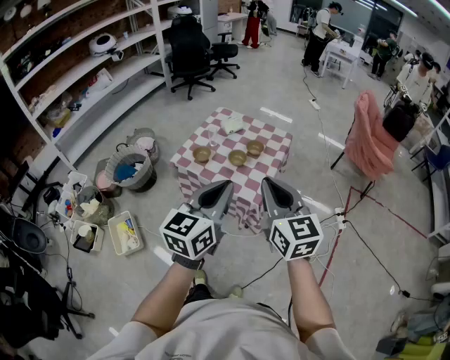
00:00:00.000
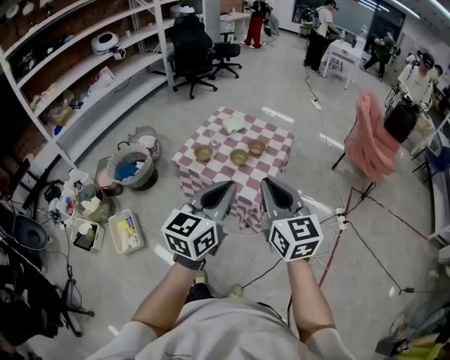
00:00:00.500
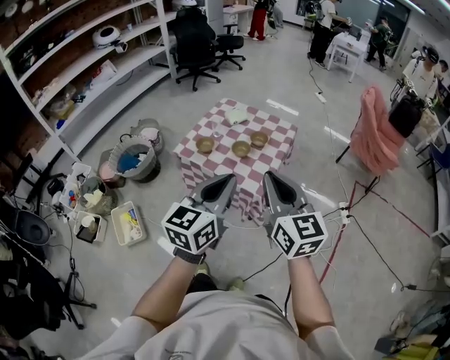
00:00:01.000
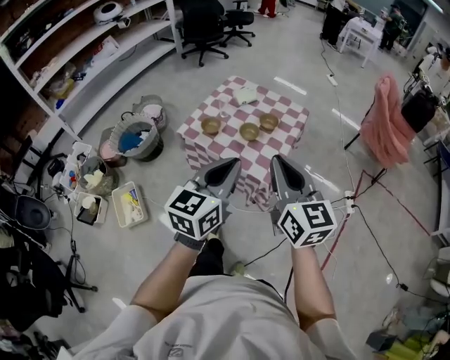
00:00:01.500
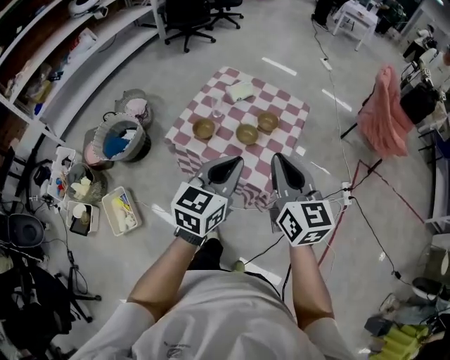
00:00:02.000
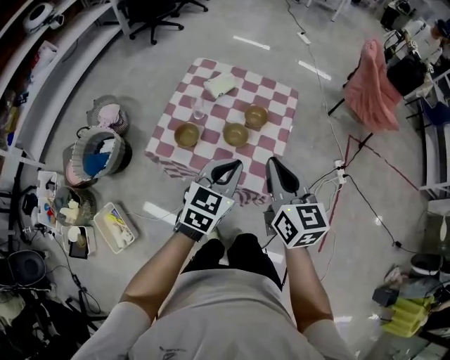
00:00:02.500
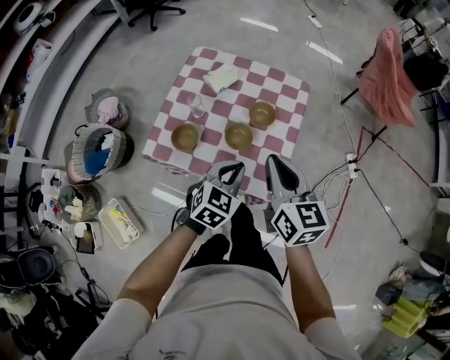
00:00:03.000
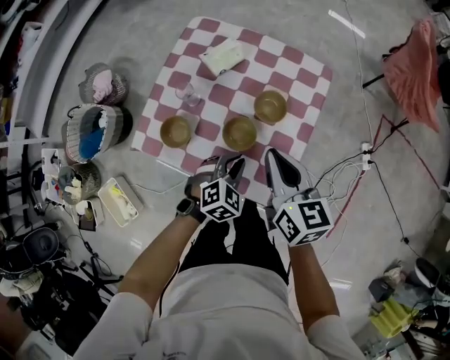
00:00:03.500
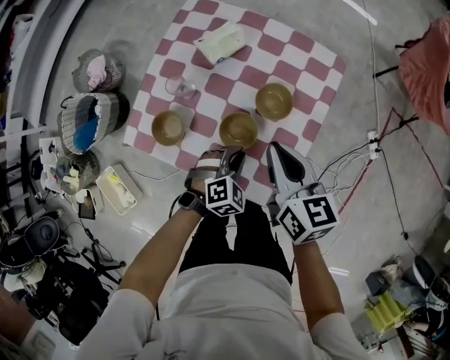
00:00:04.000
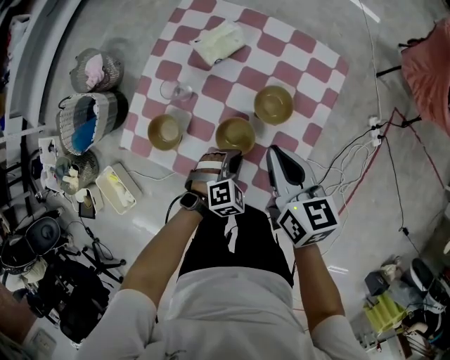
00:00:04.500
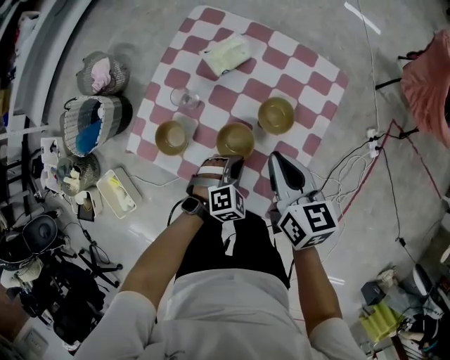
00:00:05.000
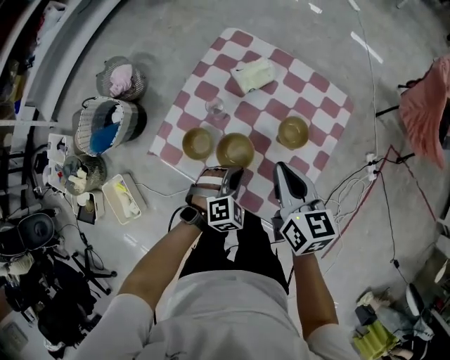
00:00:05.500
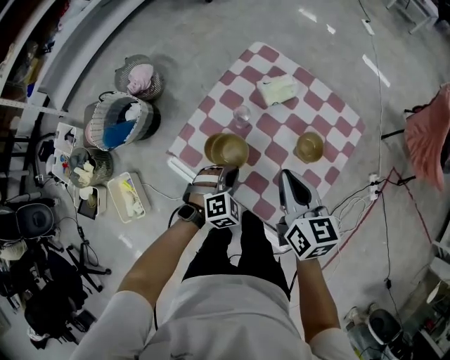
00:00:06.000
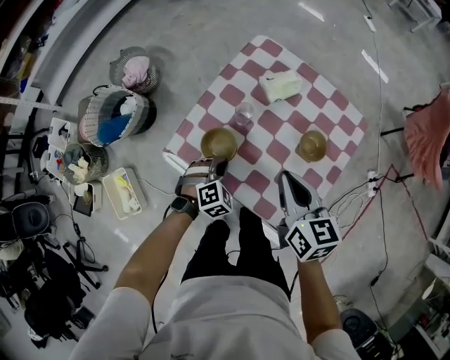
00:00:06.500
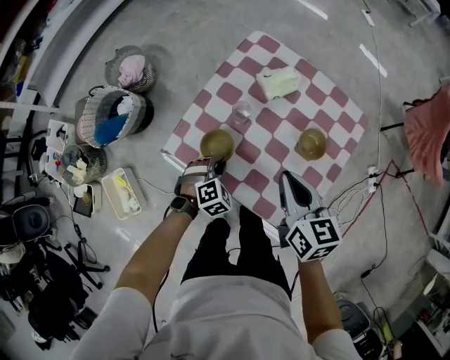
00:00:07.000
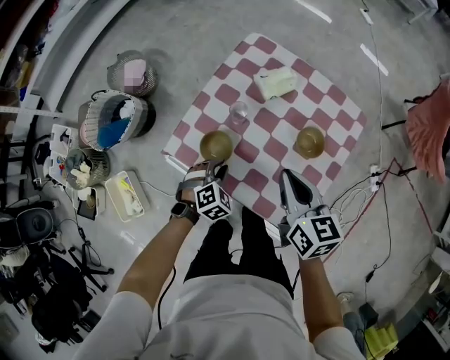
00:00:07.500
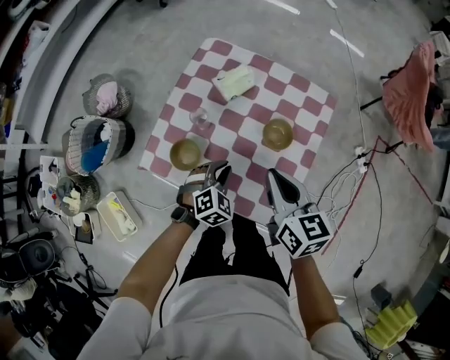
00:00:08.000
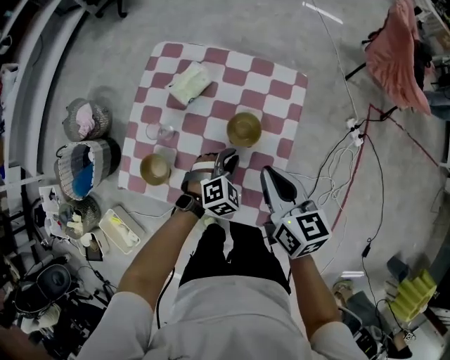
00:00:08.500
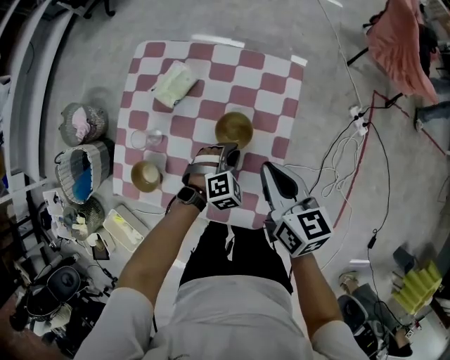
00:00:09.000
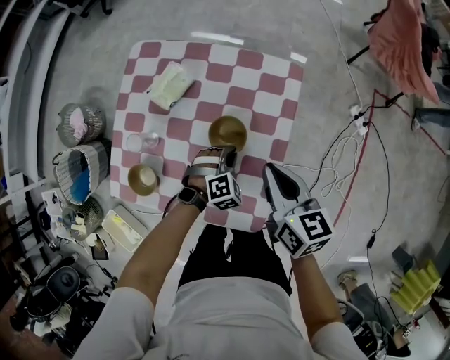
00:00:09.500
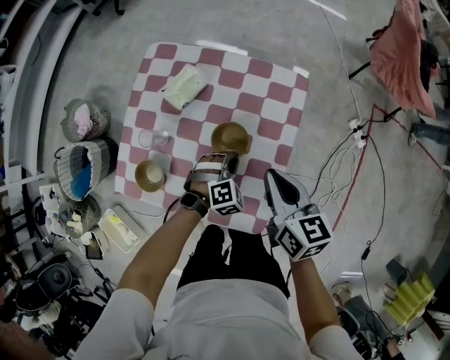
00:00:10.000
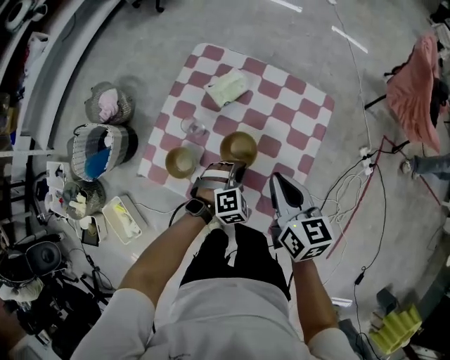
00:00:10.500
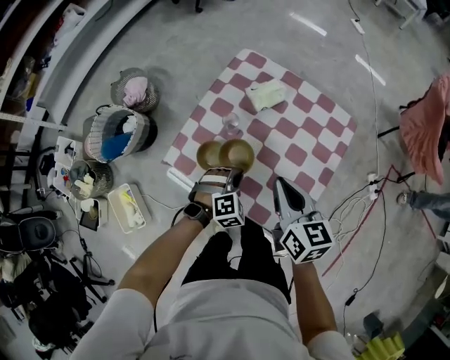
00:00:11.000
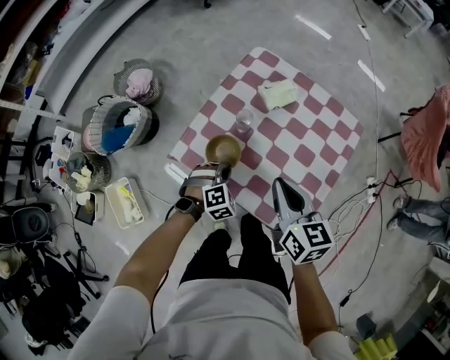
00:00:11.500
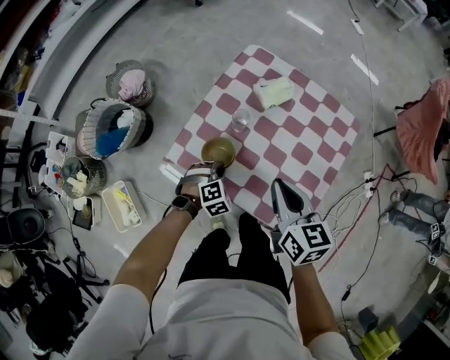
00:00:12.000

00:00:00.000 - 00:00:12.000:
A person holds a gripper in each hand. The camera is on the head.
00:00:00.000 - 00:00:02.000: Both grippers move forward and downward, about 20 cm.
00:00:02.000 - 00:00:04.000: The left gripper shifts approximately 50 cm downward and forward, and angles its fingers downward, by roughly 50 degrees. The right gripper heads forward and downward, covering approximately 40 cm, and rotates some 30 degrees.
00:00:04.000 - 00:00:06.000: The right gripper travels to the left and upward by approximately 10 cm, while the left gripper heads to the left, covering about 15 cm.
00:00:06.000 - 00:00:08.000: Both grippers travel together to the right, roughly 5 cm.
00:00:08.000 - 00:00:10.000: The left gripper is displaced to the right, forward and downward by approximately 20 cm, and changes its angle by about 20 degrees. The right gripper shifts some 15 cm to the right and forward.
00:00:10.000 - 00:00:12.000: The two grippers go about 25 cm to the left.

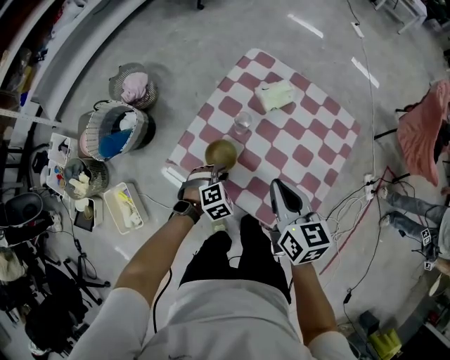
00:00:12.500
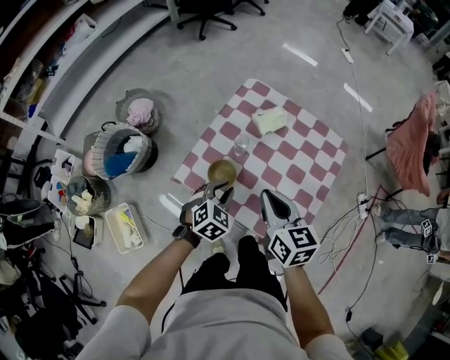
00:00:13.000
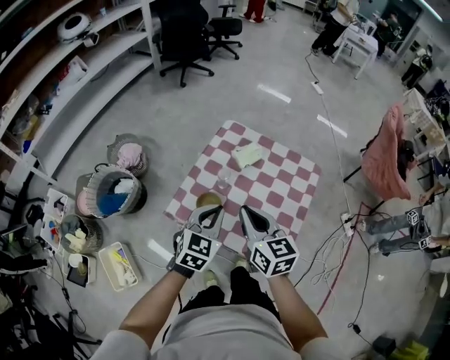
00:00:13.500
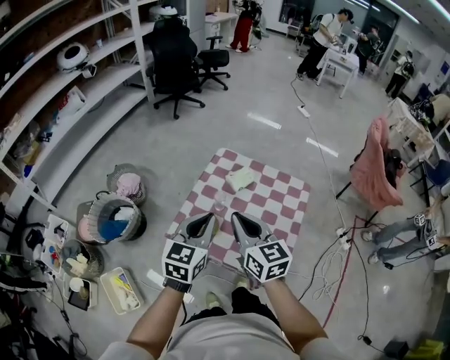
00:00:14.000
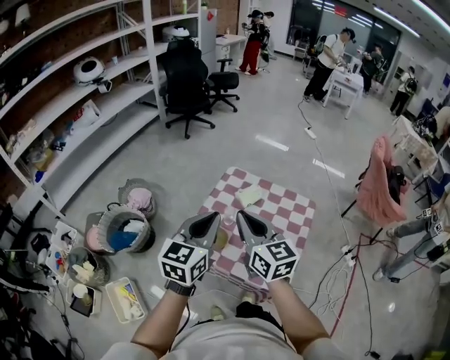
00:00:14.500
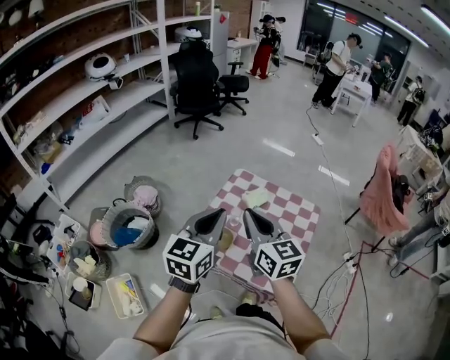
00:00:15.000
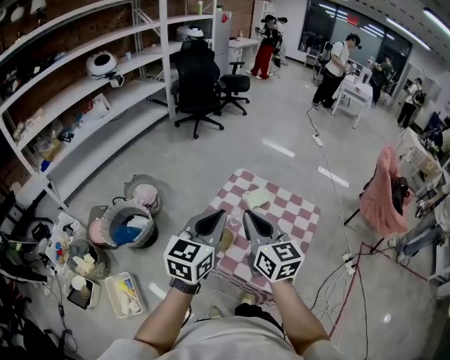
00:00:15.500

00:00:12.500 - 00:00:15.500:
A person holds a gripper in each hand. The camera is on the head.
00:00:12.500 - 00:00:14.000: The right gripper is displaced upward and to the left by approximately 20 cm. Meanwhile the left gripper goes roughly 40 cm upward, and points its fingers some 50 degrees further upward.
00:00:14.000 - 00:00:15.500: The two grippers go approximately 10 cm upward.

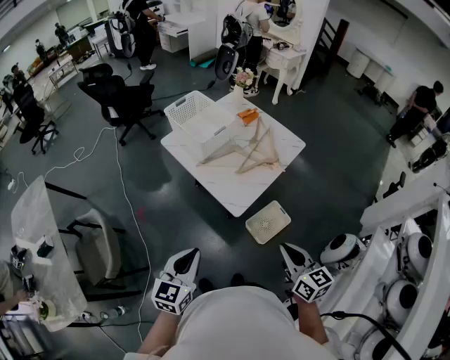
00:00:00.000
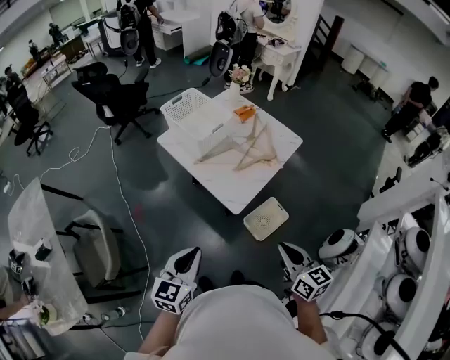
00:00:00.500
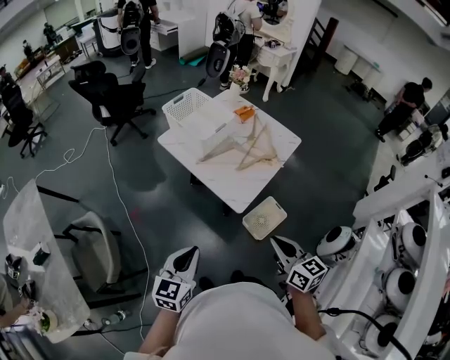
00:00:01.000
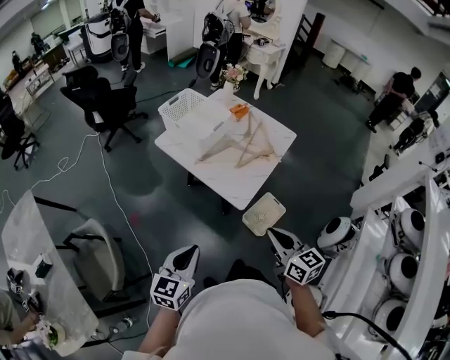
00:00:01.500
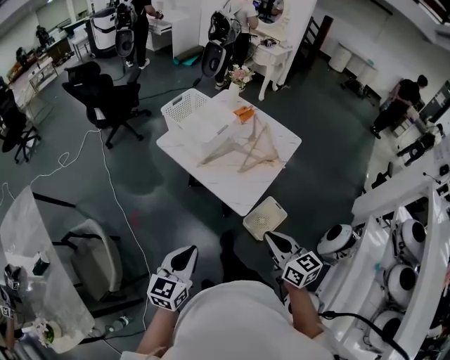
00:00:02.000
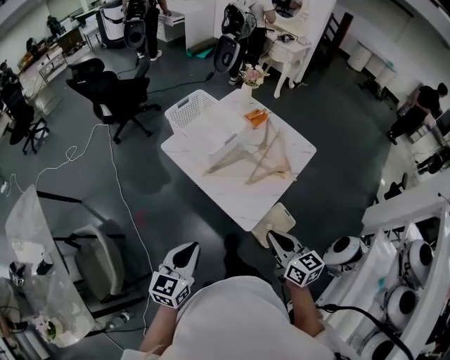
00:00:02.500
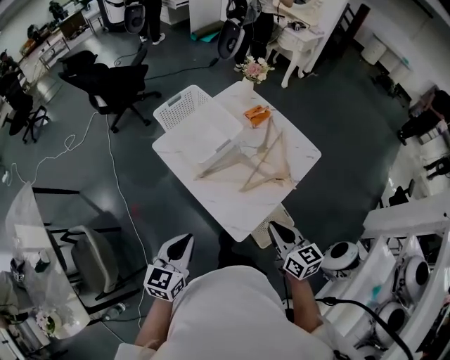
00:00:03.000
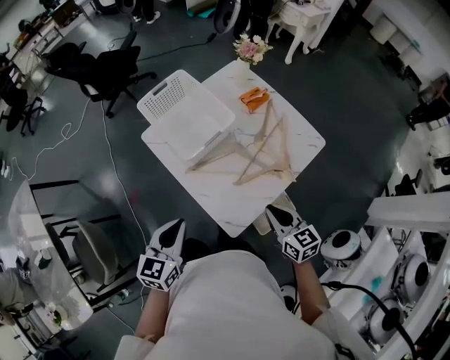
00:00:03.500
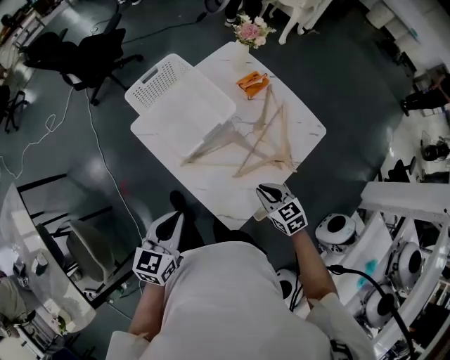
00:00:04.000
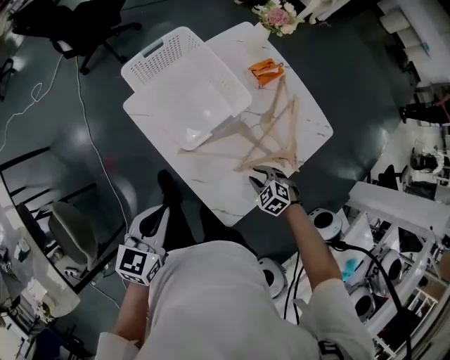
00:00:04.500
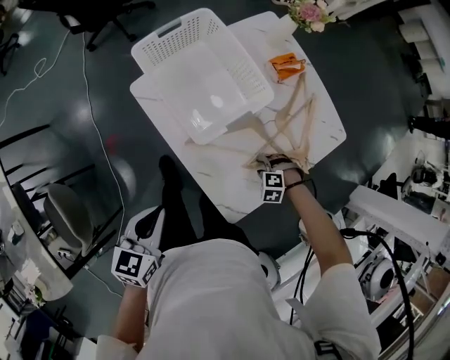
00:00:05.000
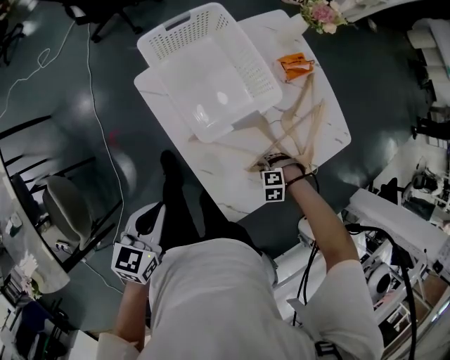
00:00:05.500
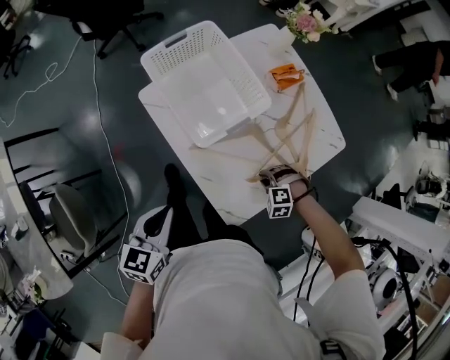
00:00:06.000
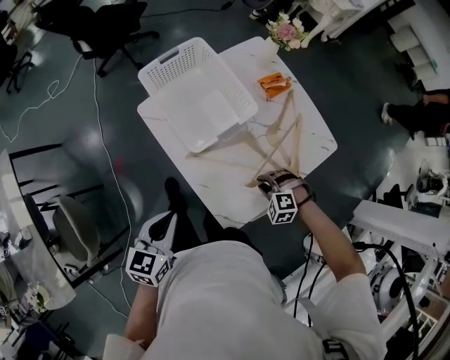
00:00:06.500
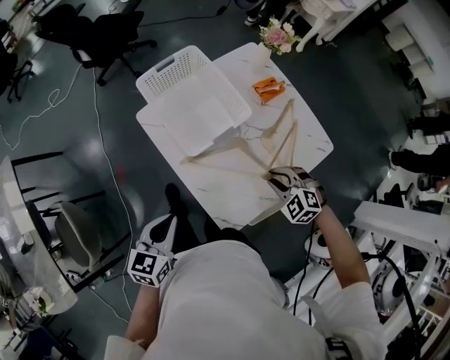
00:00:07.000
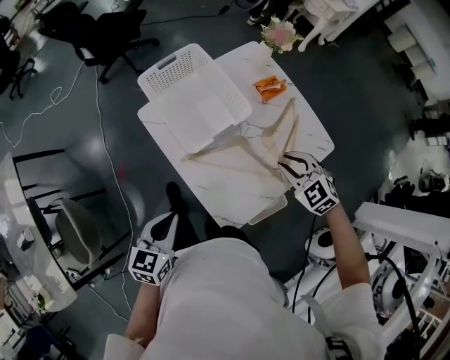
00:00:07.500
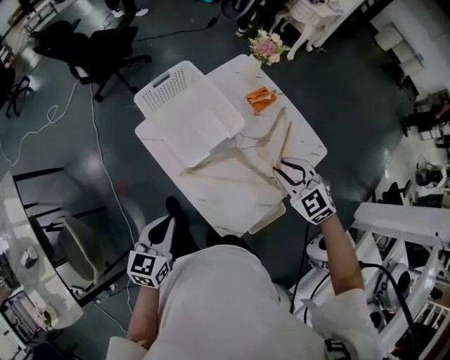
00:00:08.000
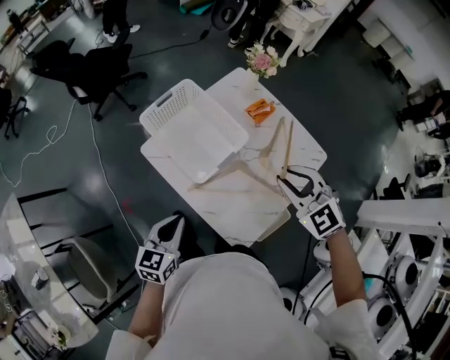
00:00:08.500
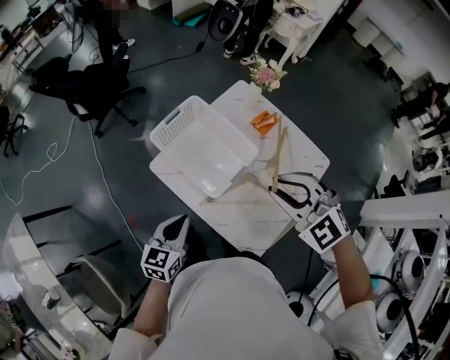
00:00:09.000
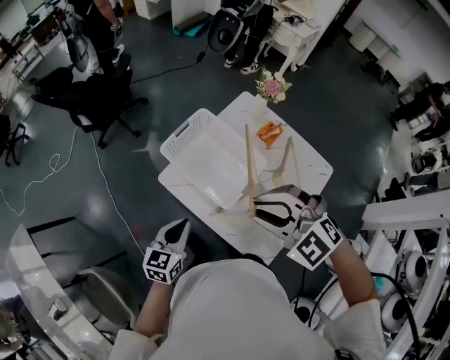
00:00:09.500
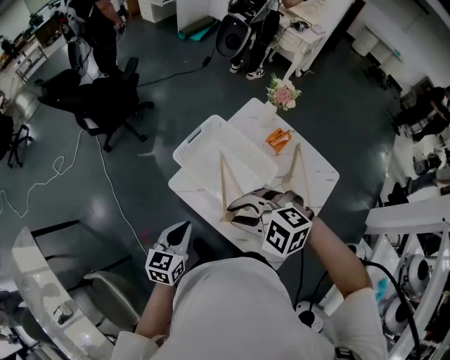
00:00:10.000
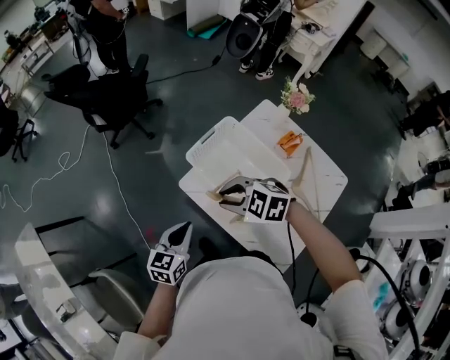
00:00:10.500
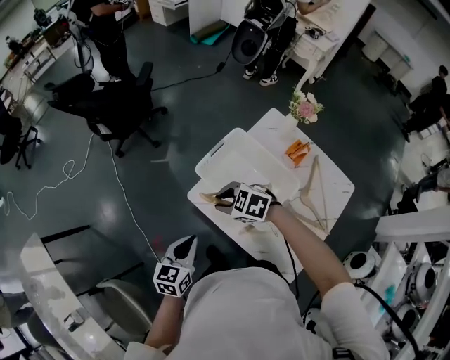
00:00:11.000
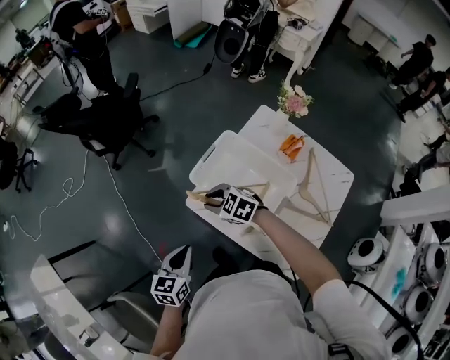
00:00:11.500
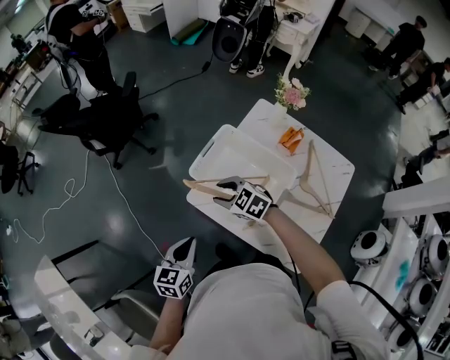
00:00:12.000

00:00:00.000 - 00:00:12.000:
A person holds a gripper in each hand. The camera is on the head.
00:00:00.000 - 00:00:02.000: Both grippers move to the left, roughly 10 cm.
00:00:02.000 - 00:00:04.000: The right gripper travels forward and downward by about 40 cm, and swivels some 30 degrees. Meanwhile the left gripper travels forward by some 30 cm.
00:00:04.000 - 00:00:06.000: The right gripper goes some 15 cm downward, and twists approximately 70 degrees counterclockwise, seen from behind. Meanwhile the left gripper ends up some 5 cm from where it was.
00:00:06.000 - 00:00:08.000: The right gripper moves upward, some 30 cm, and points its fingers roughly 40 degrees further upward.
00:00:08.000 - 00:00:10.000: The right gripper is displaced to the left by about 30 cm, and swivels about 30 degrees; the left gripper shifts about 20 cm forward and to the left.
00:00:10.000 - 00:00:12.000: The left gripper travels to the left by about 5 cm; the right gripper heads forward and downward, covering some 20 cm, and changes its angle by approximately 40 degrees.
